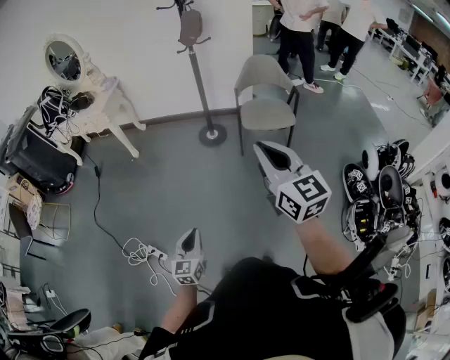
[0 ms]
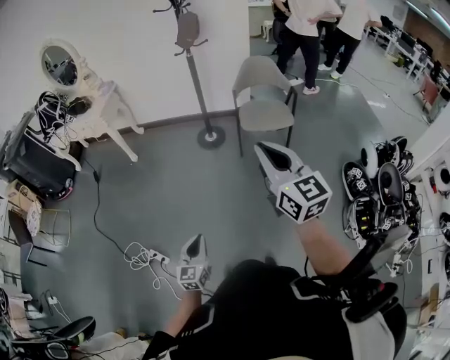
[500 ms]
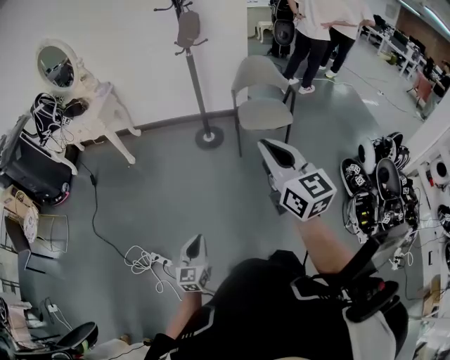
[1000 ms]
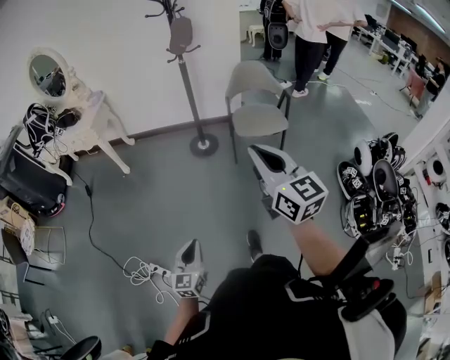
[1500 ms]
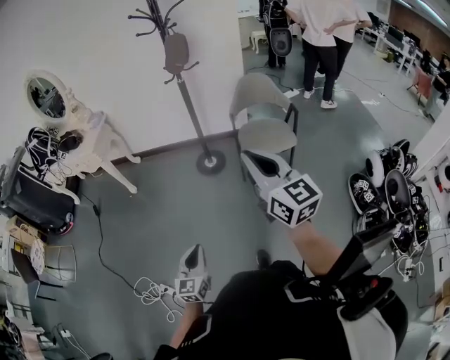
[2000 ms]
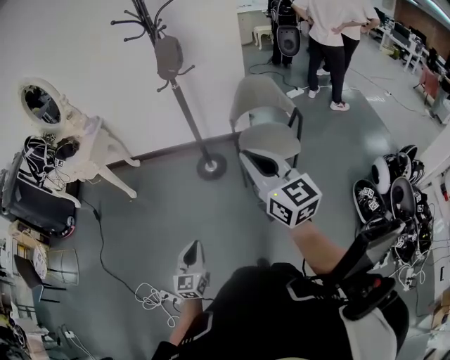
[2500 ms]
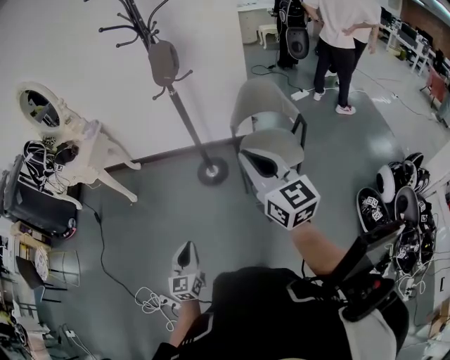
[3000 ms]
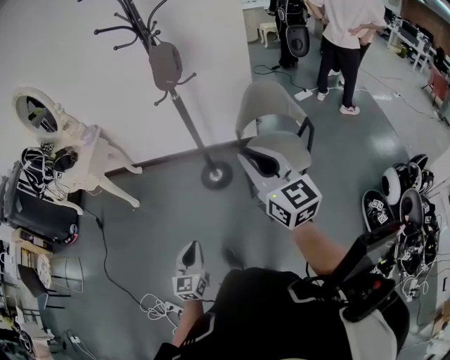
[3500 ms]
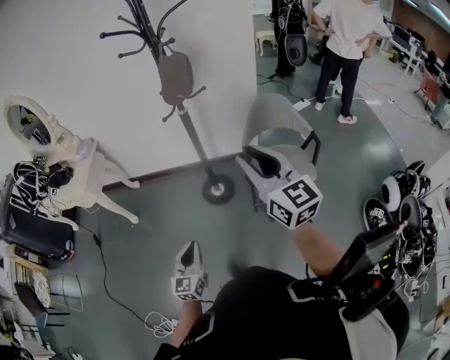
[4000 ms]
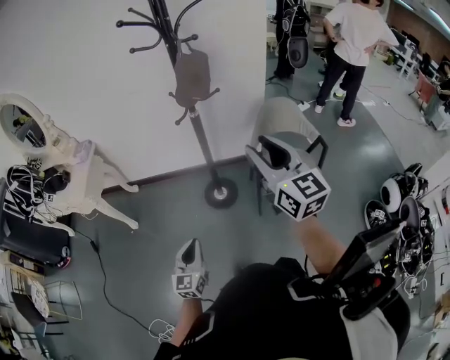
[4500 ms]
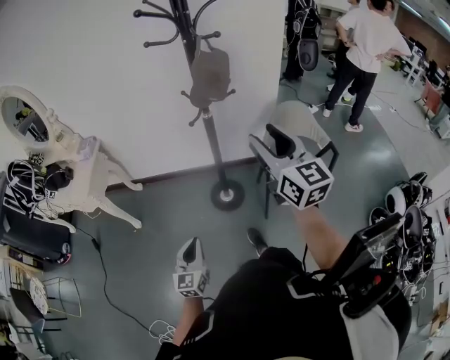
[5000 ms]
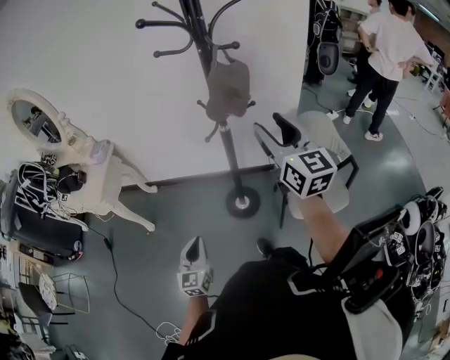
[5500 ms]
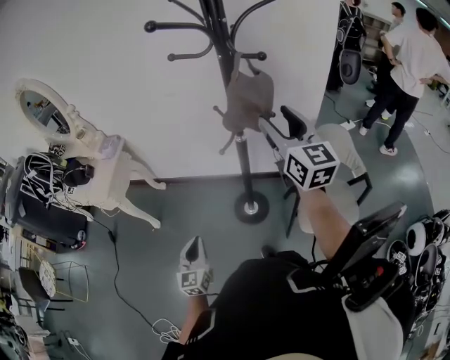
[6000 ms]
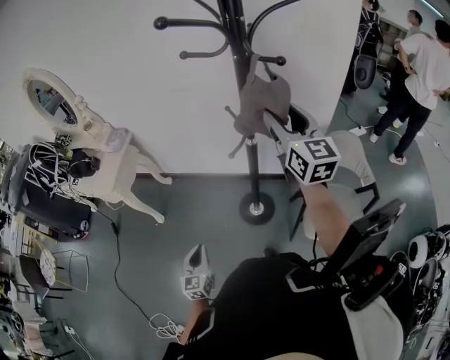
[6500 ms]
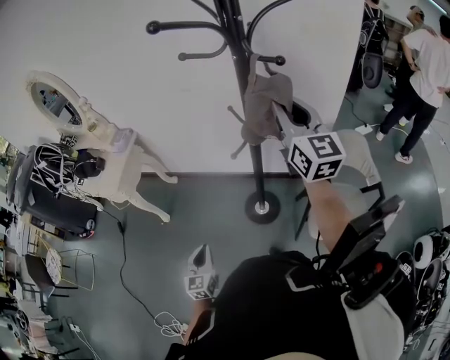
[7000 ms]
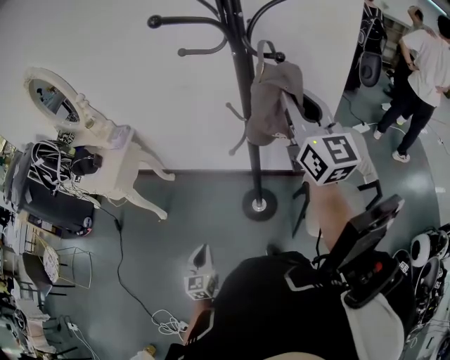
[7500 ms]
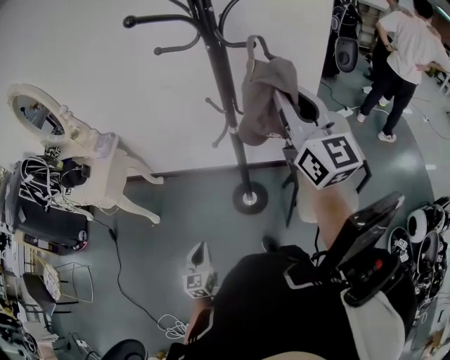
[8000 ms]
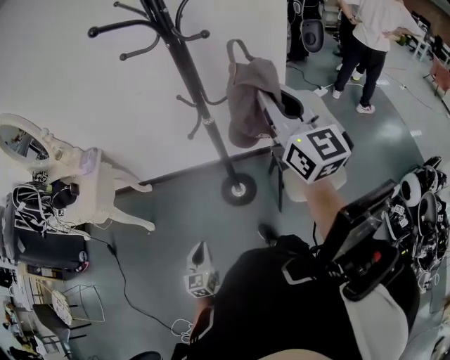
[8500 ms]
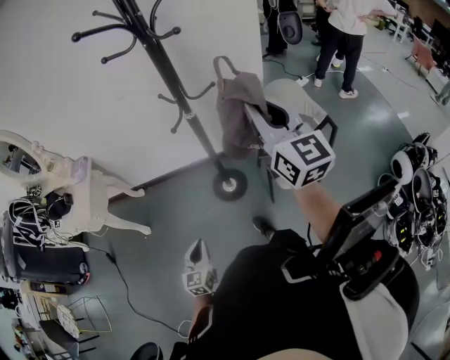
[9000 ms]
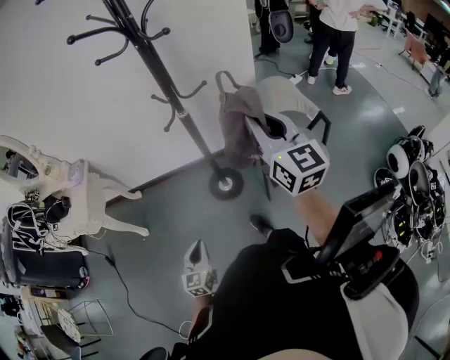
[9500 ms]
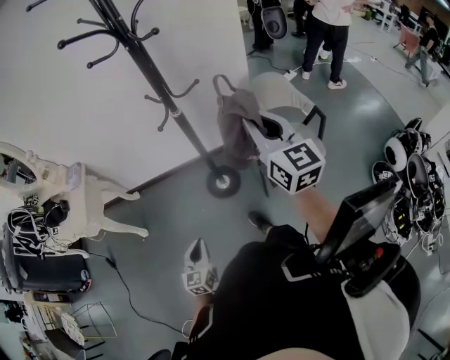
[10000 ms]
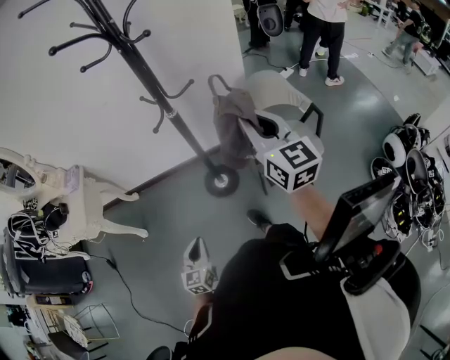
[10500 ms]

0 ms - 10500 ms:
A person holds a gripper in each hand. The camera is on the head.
0 ms - 2000 ms: Both grippers travel together forward, approximately 15 cm.
2000 ms - 4000 ms: The two grippers go approximately 35 cm forward. The right gripper opens its fingers.
4000 ms - 6500 ms: The left gripper heads forward and to the left, covering about 30 cm, while the right gripper moves forward, about 40 cm, and opens up.
6500 ms - 8500 ms: The left gripper is displaced backward by approximately 5 cm. The right gripper travels backward by roughly 15 cm, and closes its fingers.
8500 ms - 10500 ms: The right gripper shifts about 15 cm downward and backward. The left gripper ends up approximately 5 cm from where it was.

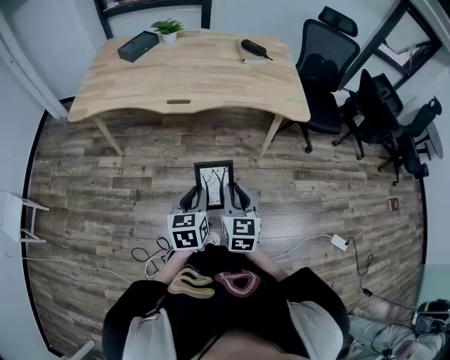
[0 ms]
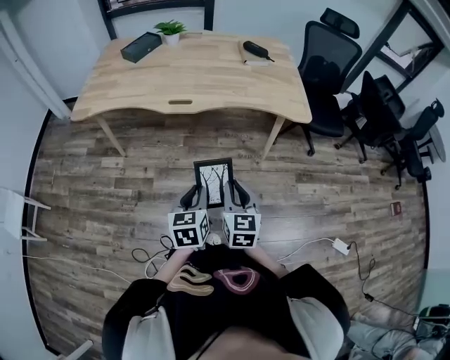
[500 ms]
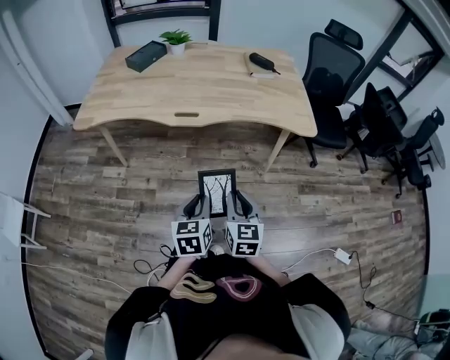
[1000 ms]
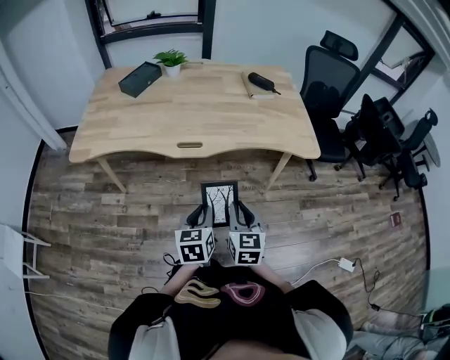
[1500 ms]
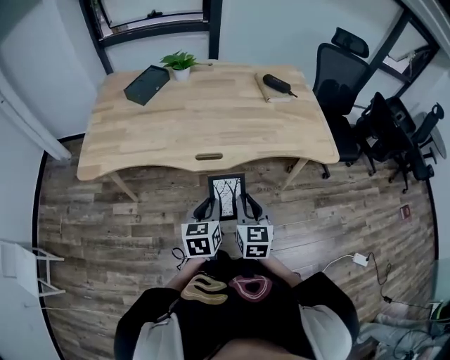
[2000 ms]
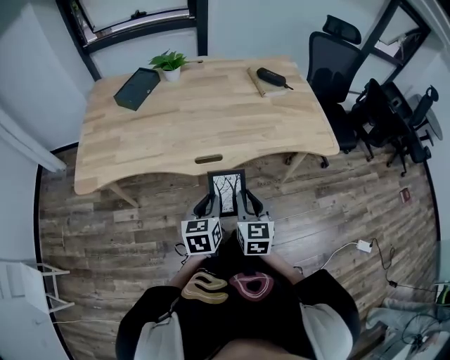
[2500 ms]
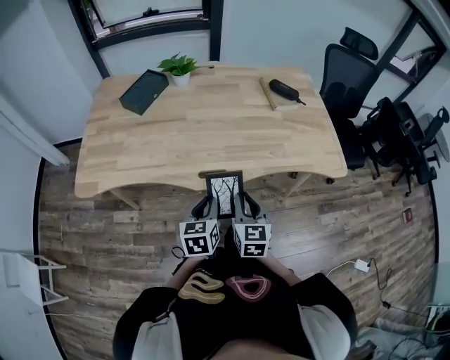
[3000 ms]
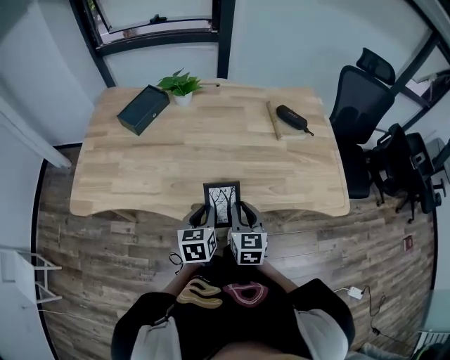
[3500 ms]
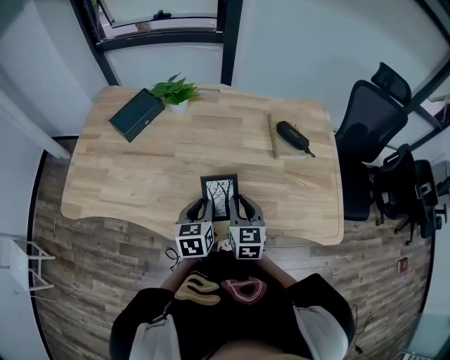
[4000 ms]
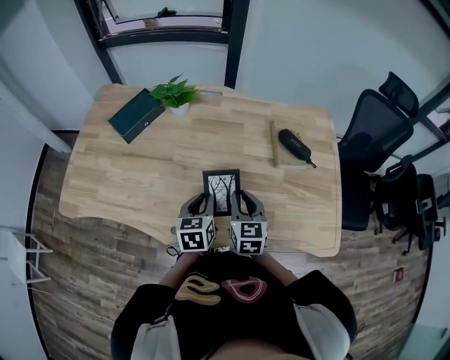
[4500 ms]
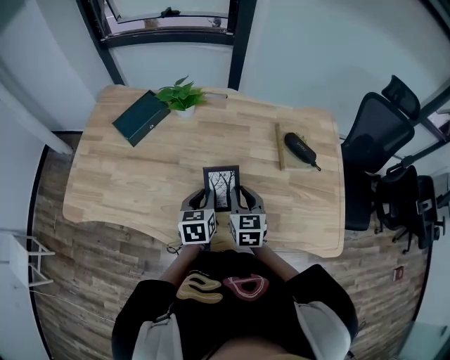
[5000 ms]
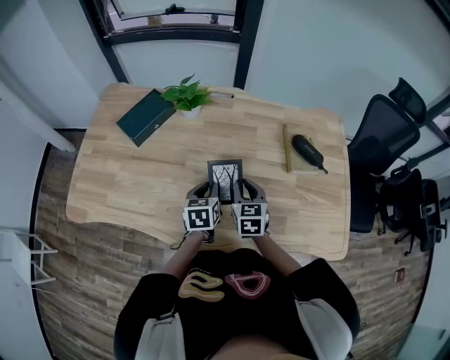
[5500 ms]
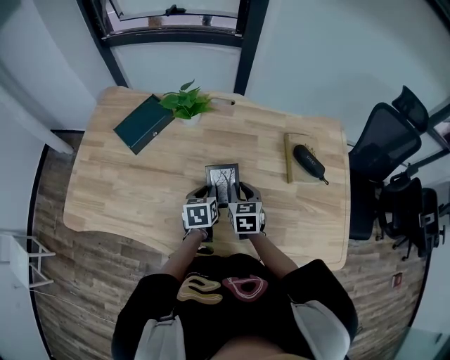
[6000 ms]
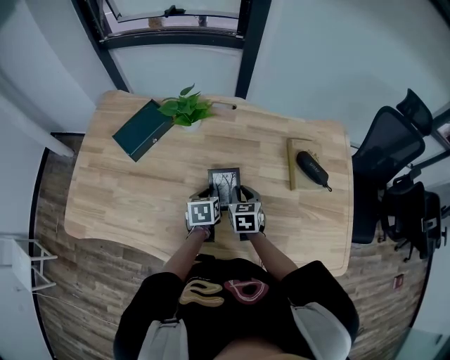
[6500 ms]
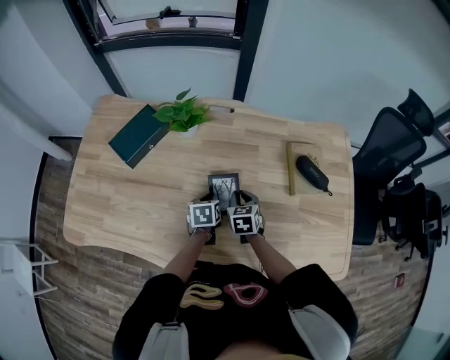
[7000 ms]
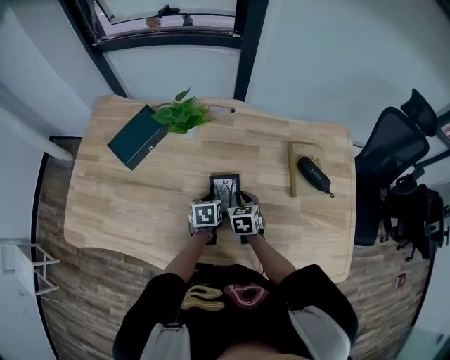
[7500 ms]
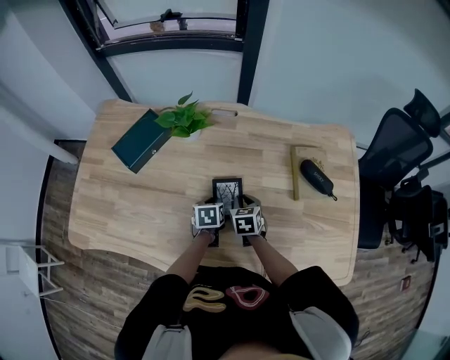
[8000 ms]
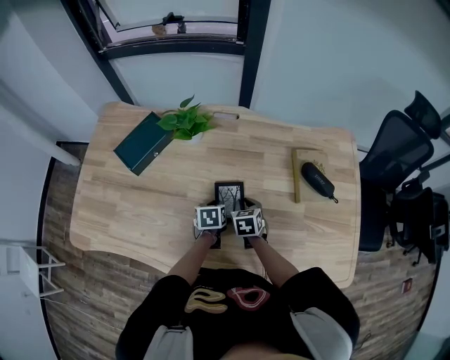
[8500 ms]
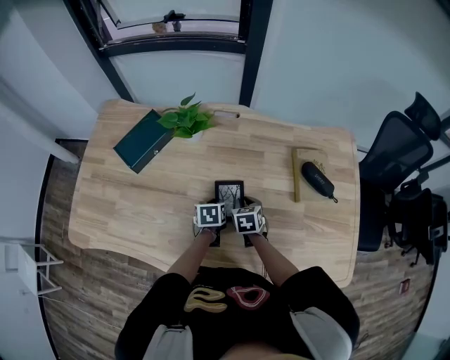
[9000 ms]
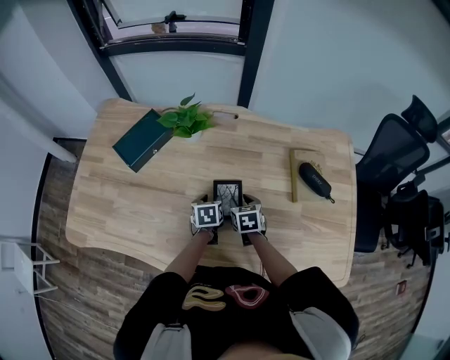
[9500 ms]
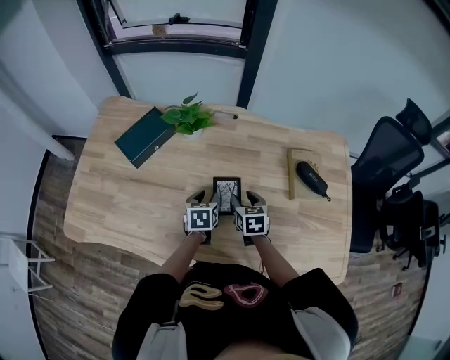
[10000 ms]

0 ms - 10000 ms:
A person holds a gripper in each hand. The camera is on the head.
0 ms - 2000 ms: The two grippers go some 25 cm forward and to the left.
2000 ms - 4000 ms: The grippers both shift forward by approximately 35 cm.
4000 ms - 6000 ms: The two grippers go roughly 15 cm forward.
6000 ms - 8000 ms: Both grippers travel together downward and forward, approximately 10 cm.
8000 ms - 10000 ms: The left gripper travels upward by some 5 cm, and opens, while the right gripper opens its fingers.

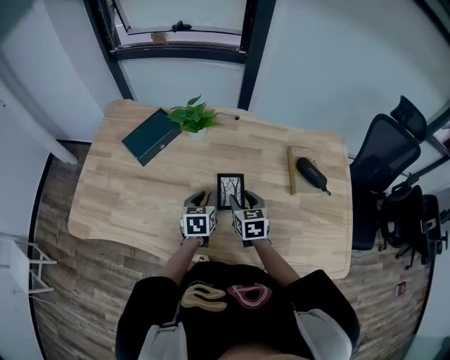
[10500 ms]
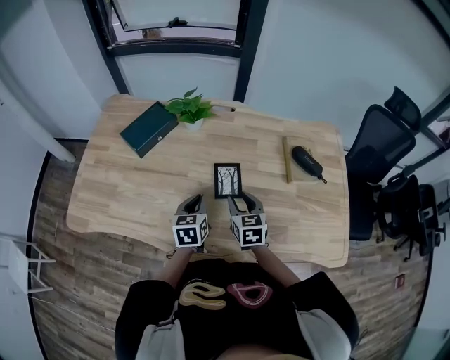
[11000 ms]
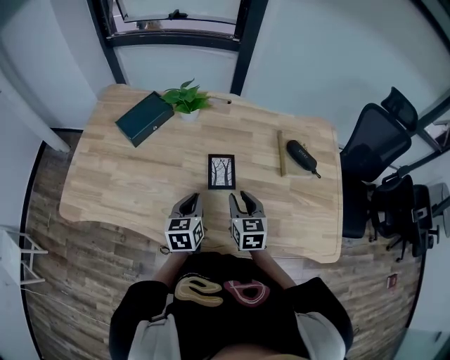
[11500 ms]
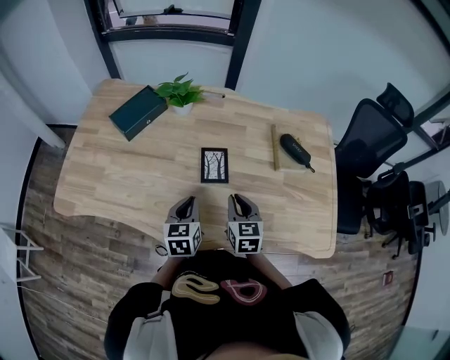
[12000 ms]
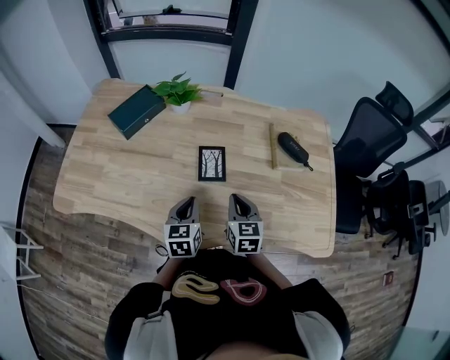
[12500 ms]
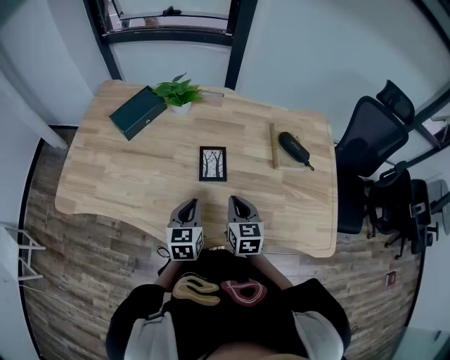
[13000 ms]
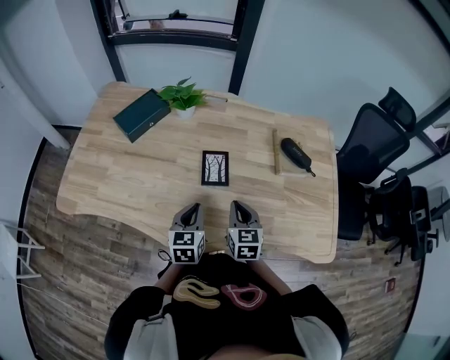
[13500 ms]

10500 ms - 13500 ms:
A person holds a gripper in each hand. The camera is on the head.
10500 ms - 12000 ms: Both grippers move backward, approximately 10 cm. The right gripper closes its fingers.
12000 ms - 13500 ms: The grippers move only a little.

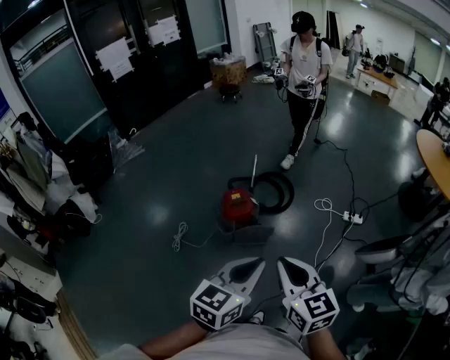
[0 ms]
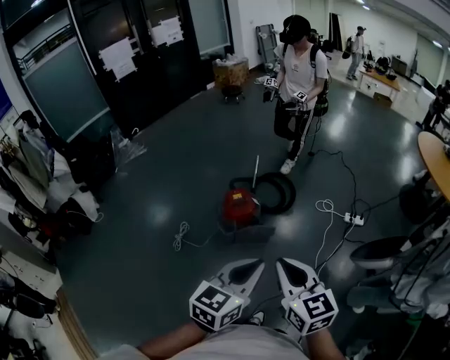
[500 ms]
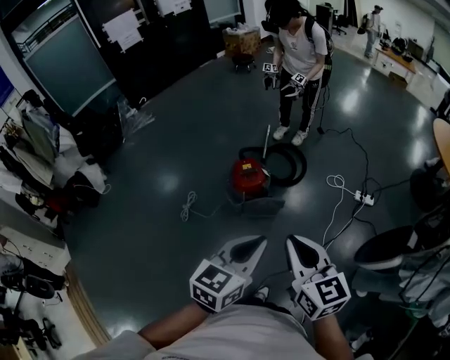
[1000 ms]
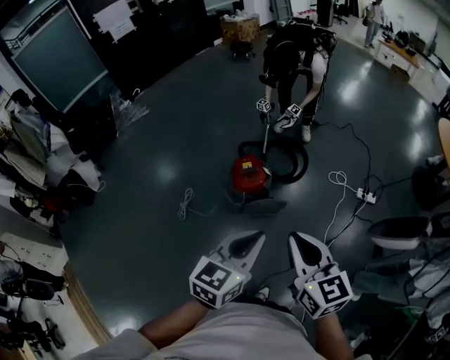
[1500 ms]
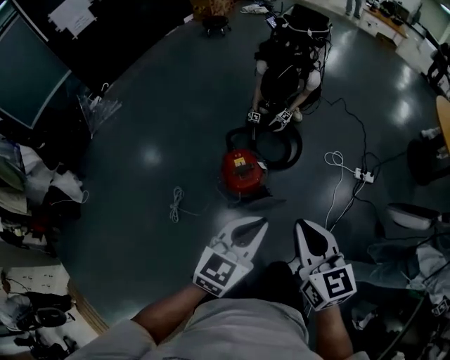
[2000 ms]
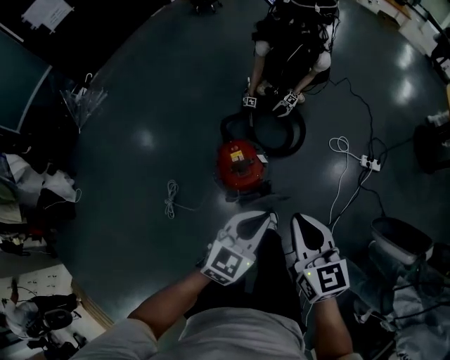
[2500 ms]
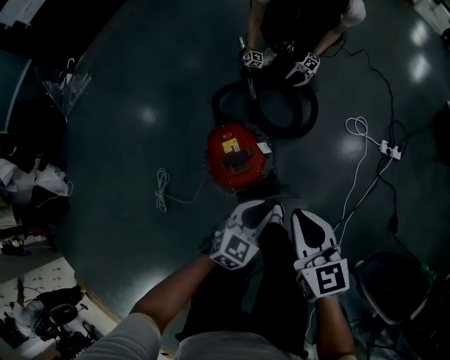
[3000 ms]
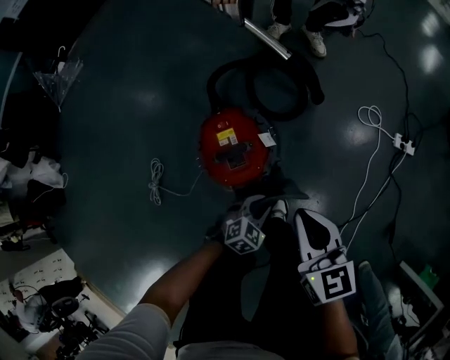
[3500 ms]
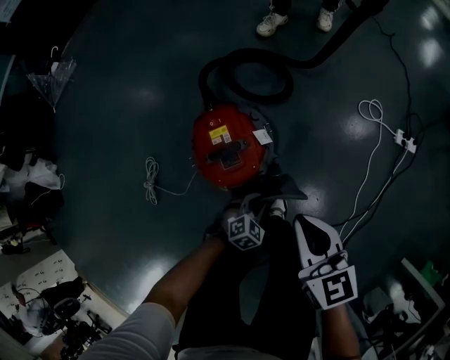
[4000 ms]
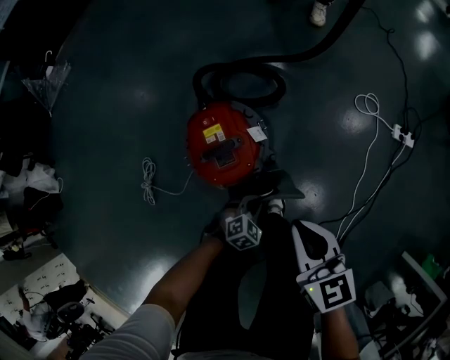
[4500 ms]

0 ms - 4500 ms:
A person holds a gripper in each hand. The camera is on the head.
0 ms - 2000 ms: The right gripper is displaced forward by about 25 cm, while the left gripper goes about 30 cm forward, to the left and downward.
2000 ms - 4500 ms: The right gripper heads downward and forward, covering some 50 cm. The left gripper shifts roughly 70 cm downward, and tilts its fingers approximately 40 degrees downward.
